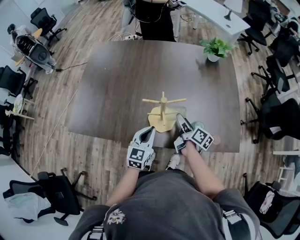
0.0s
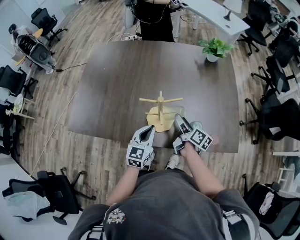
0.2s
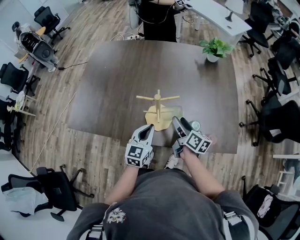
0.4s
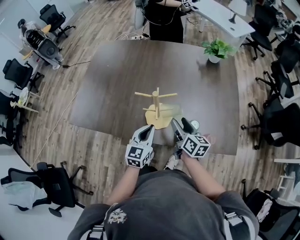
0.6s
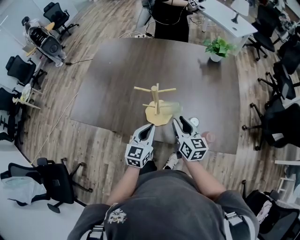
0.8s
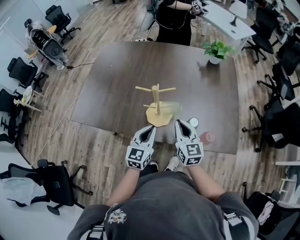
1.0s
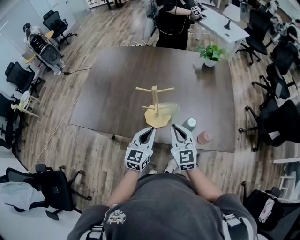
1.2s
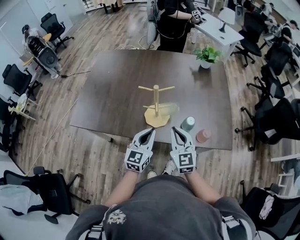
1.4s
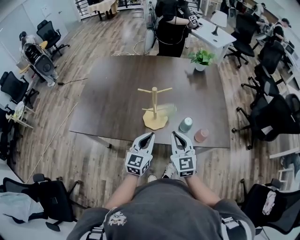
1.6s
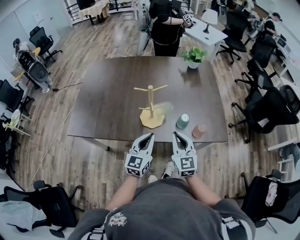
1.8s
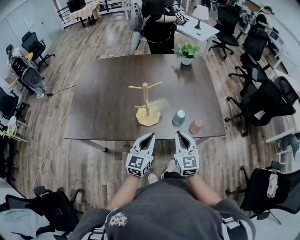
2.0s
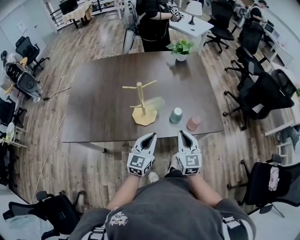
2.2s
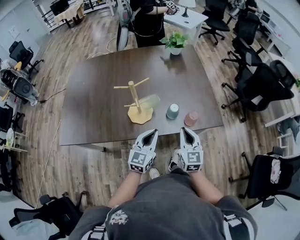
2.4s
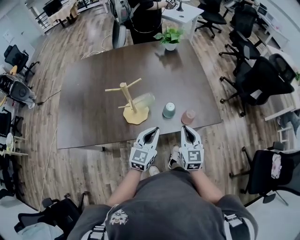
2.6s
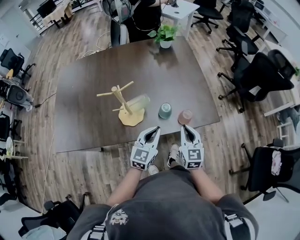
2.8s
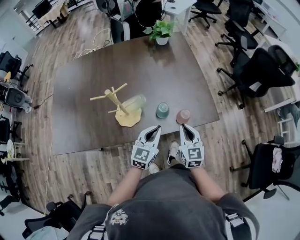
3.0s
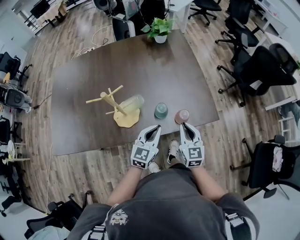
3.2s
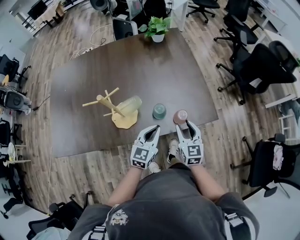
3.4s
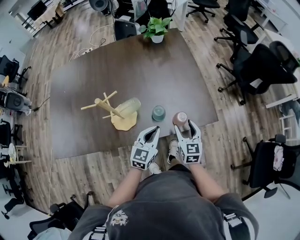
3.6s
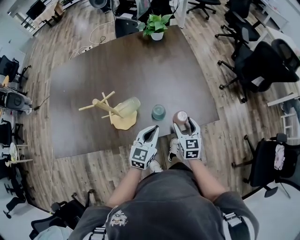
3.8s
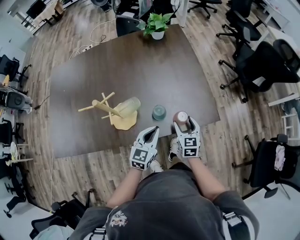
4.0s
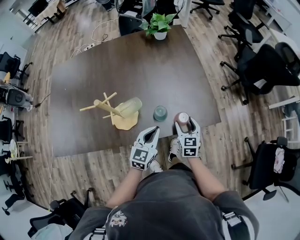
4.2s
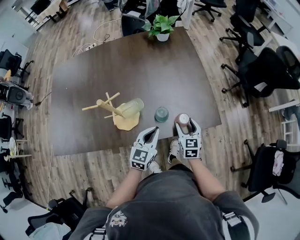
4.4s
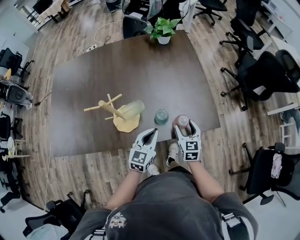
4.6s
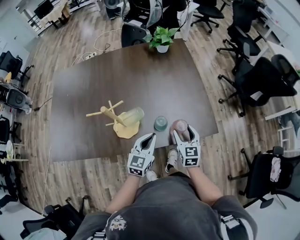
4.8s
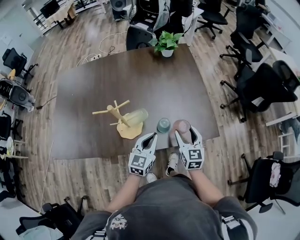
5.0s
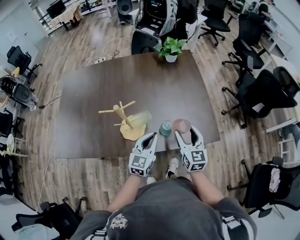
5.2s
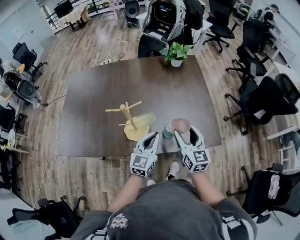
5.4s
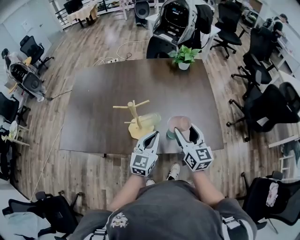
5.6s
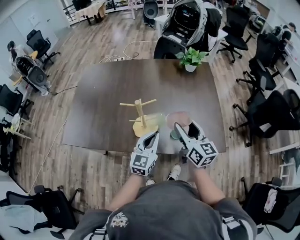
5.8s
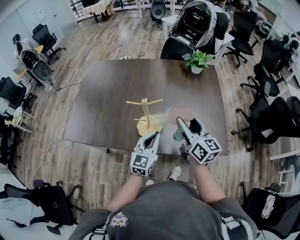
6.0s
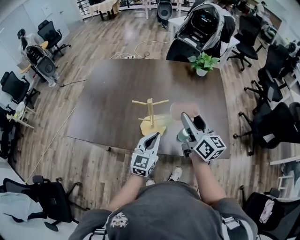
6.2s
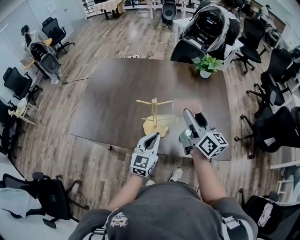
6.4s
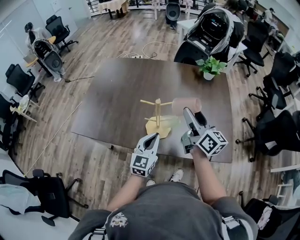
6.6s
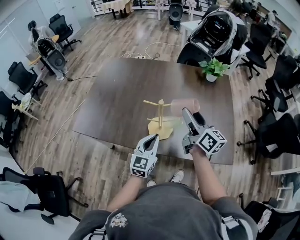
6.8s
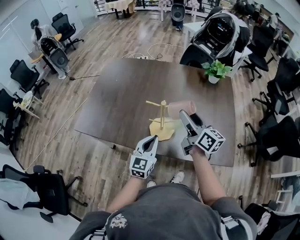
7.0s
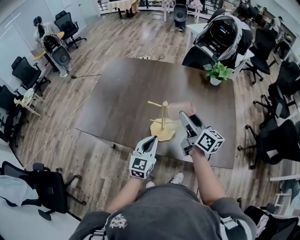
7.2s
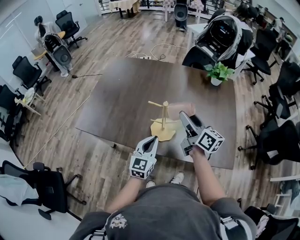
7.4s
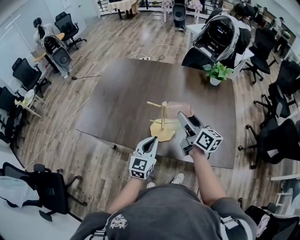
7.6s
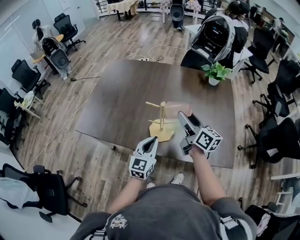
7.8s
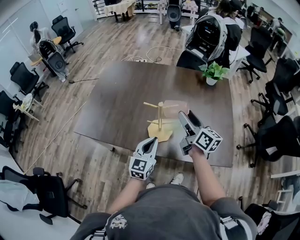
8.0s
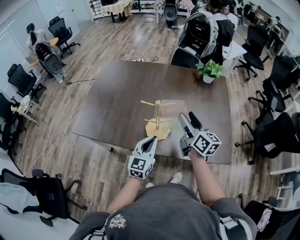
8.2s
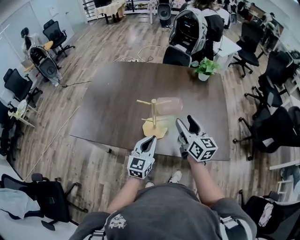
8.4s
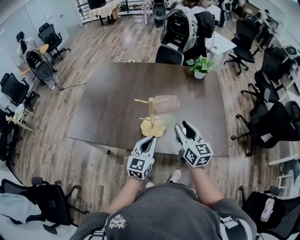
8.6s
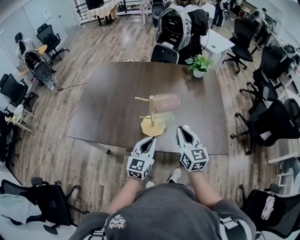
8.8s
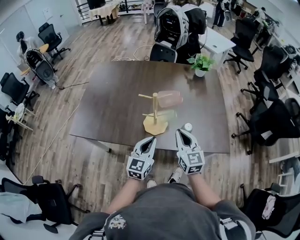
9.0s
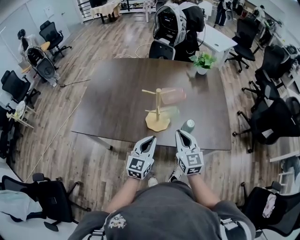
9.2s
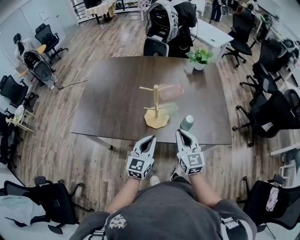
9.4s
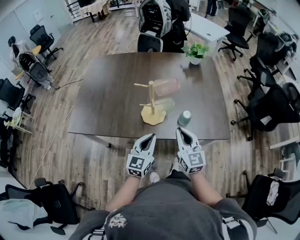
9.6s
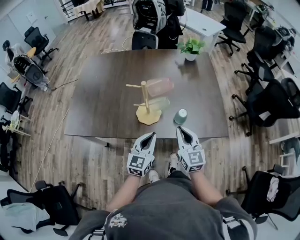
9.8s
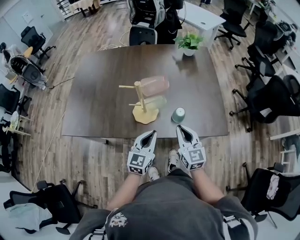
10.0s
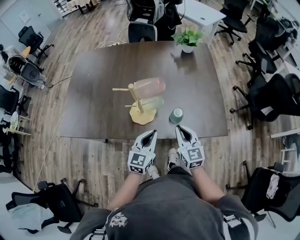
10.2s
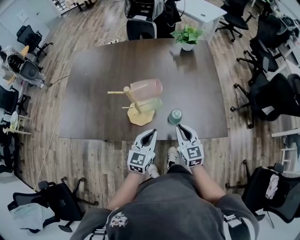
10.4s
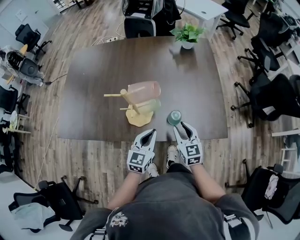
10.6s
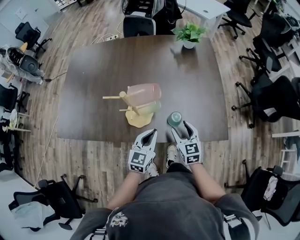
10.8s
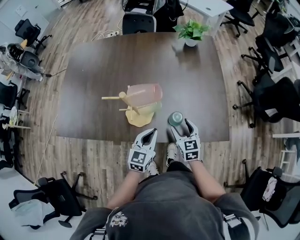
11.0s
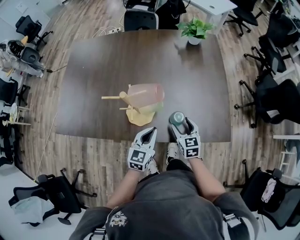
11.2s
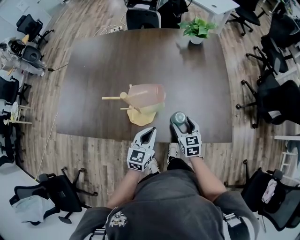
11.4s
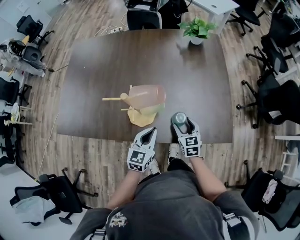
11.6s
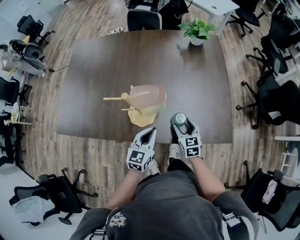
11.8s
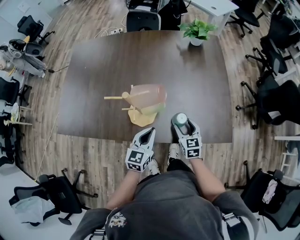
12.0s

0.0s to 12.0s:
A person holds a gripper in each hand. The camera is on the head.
0.0s to 1.6s: The left gripper goes approximately 10 cm backward and upward. Meanwhile the right gripper travels backward and upward by some 20 cm, twists some 70 degrees counterclockwise, seen from behind, and closes.
1.6s to 3.0s: The right gripper is displaced to the right and downward by roughly 20 cm, and rotates about 20 degrees, while the left gripper moves to the right, some 15 cm, and rotates some 20 degrees.
3.0s to 4.4s: The right gripper is displaced downward and forward by roughly 10 cm, and opens its fingers.
4.4s to 6.0s: The right gripper heads upward and to the left, covering some 30 cm, and tips its fingers upward by roughly 30 degrees. Meanwhile the left gripper shifts approximately 15 cm to the left and upward, and rotates some 20 degrees.
6.0s to 7.6s: The left gripper is displaced to the left by approximately 10 cm, while the right gripper heads to the left and forward, covering about 10 cm.
7.6s to 9.0s: The left gripper travels backward by some 5 cm. Meanwhile the right gripper moves backward and downward, roughly 15 cm, swivels some 40 degrees, and closes up.
9.0s to 10.4s: The left gripper heads to the right and downward, covering some 10 cm. Meanwhile the right gripper is displaced downward and to the right by roughly 15 cm.
10.4s to 12.0s: The right gripper is displaced downward and forward by roughly 10 cm, and opens its fingers. The left gripper changes place by roughly 5 cm.

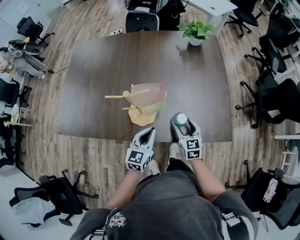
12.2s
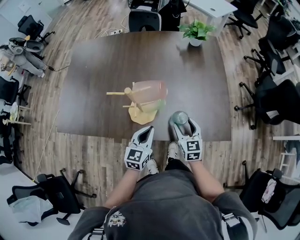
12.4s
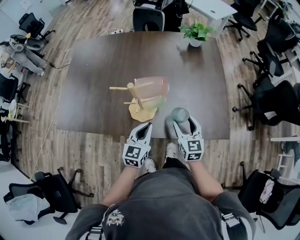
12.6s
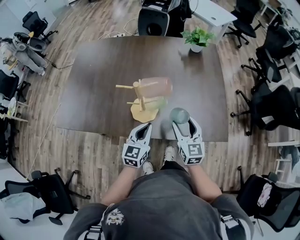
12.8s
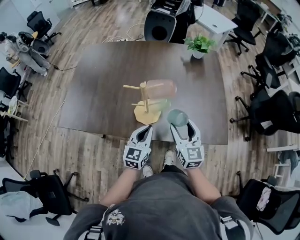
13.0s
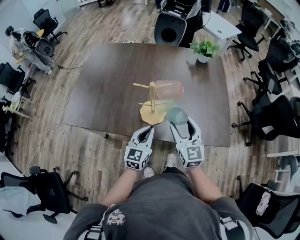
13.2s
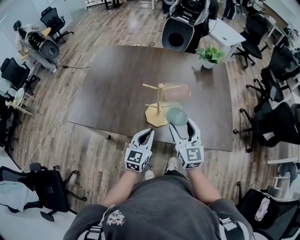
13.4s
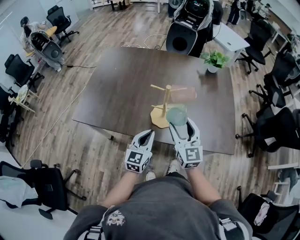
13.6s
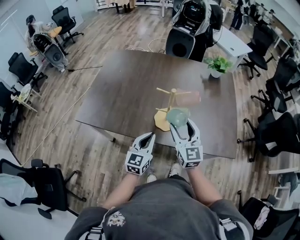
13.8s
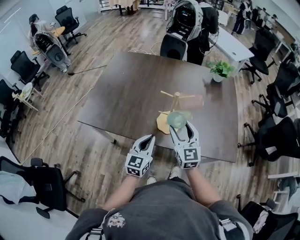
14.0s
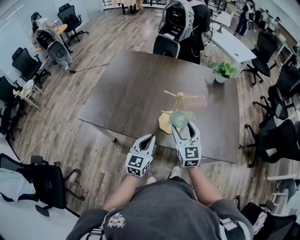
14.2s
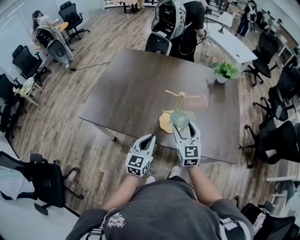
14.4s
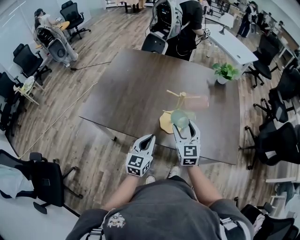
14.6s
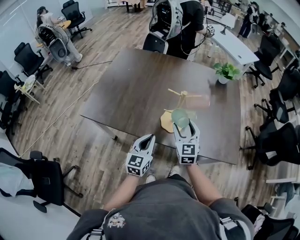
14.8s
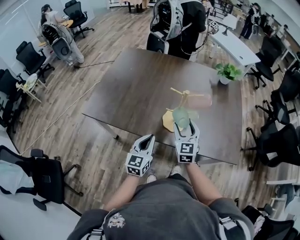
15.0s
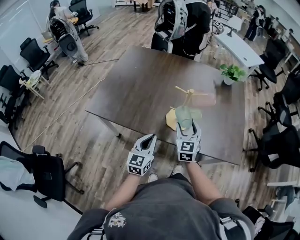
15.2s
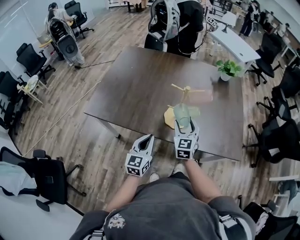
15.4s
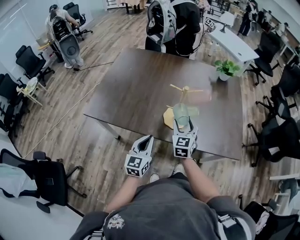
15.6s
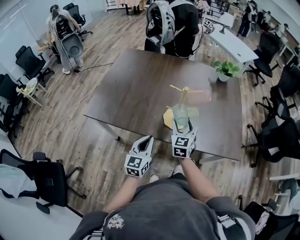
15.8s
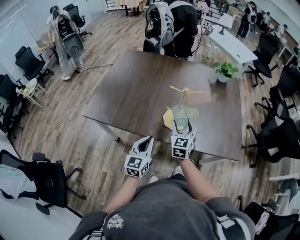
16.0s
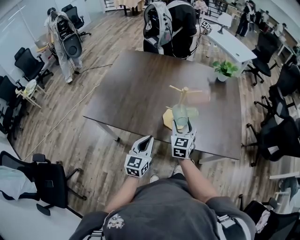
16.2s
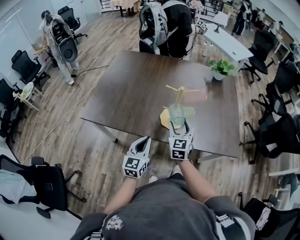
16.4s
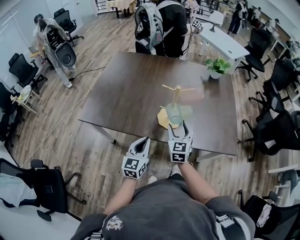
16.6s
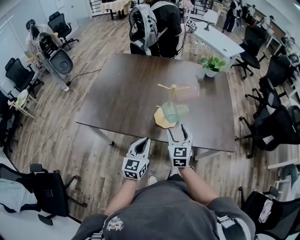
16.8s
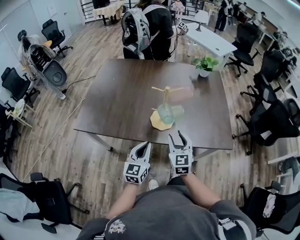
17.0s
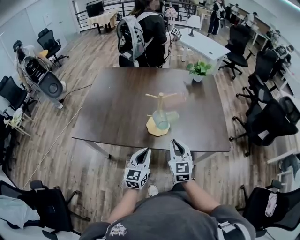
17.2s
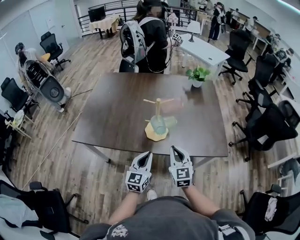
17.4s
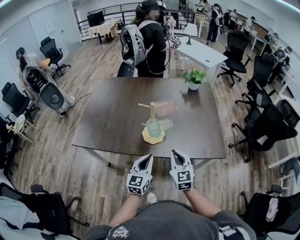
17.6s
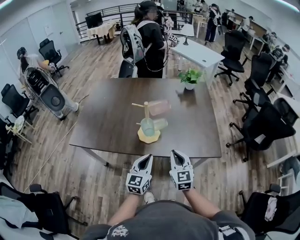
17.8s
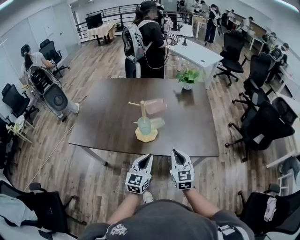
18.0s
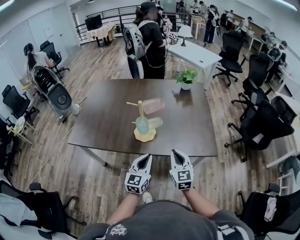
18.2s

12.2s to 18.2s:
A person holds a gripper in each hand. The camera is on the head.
12.2s to 13.8s: The left gripper is displaced to the left, upward and backward by approximately 15 cm. Meanwhile the right gripper shifts some 25 cm upward and to the left, and turns by some 30 degrees.
13.8s to 15.2s: The left gripper heads to the left, covering some 5 cm, while the right gripper travels downward by about 5 cm.
15.2s to 16.6s: The grippers move only a little.
16.6s to 18.2s: The right gripper travels to the right and backward by approximately 20 cm, and closes up. Meanwhile the left gripper goes approximately 15 cm to the right.

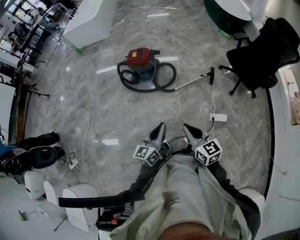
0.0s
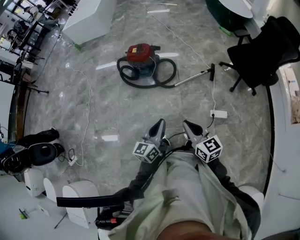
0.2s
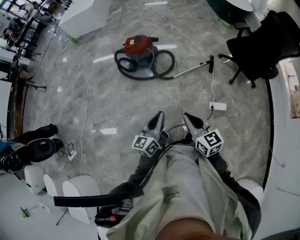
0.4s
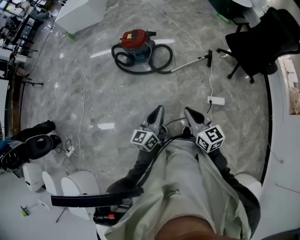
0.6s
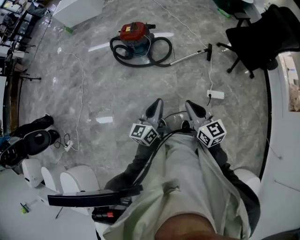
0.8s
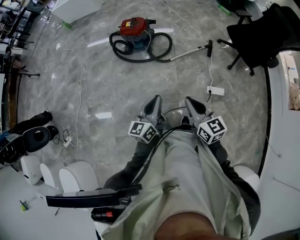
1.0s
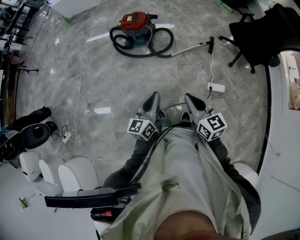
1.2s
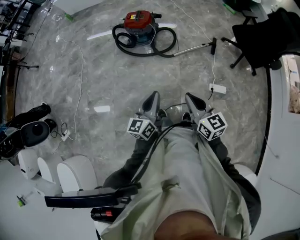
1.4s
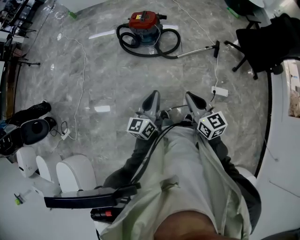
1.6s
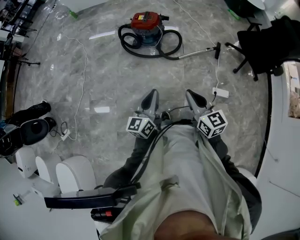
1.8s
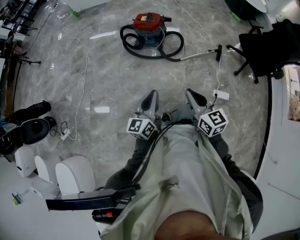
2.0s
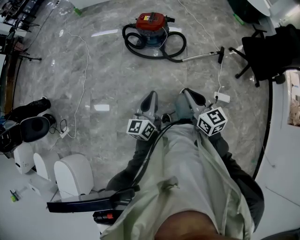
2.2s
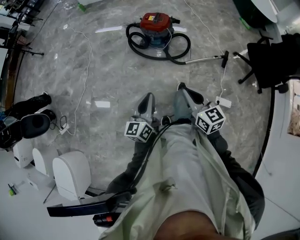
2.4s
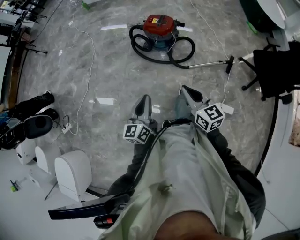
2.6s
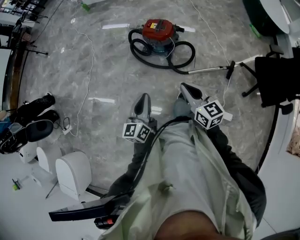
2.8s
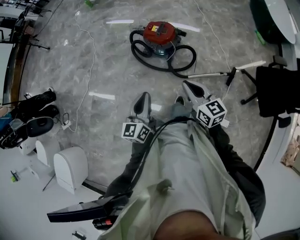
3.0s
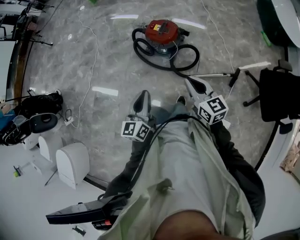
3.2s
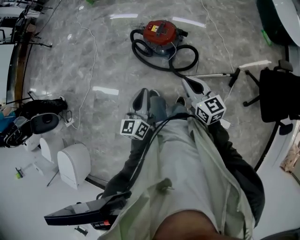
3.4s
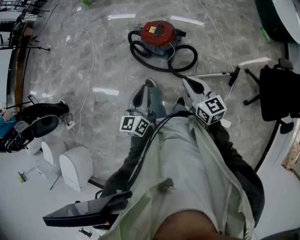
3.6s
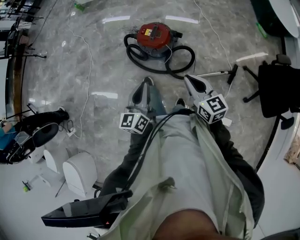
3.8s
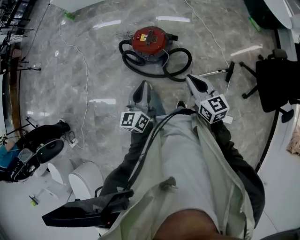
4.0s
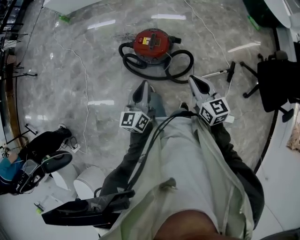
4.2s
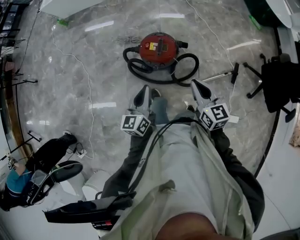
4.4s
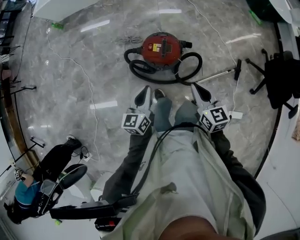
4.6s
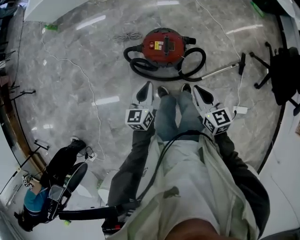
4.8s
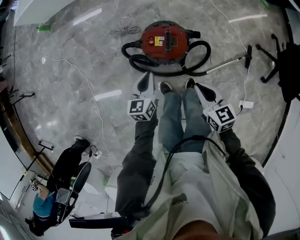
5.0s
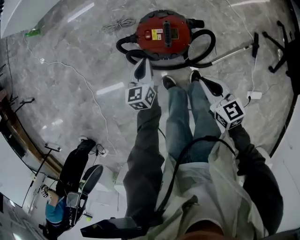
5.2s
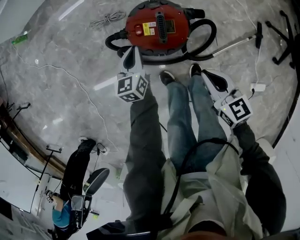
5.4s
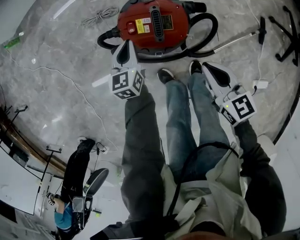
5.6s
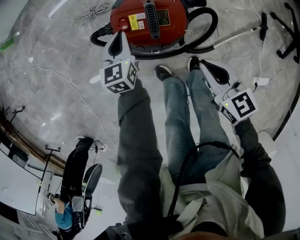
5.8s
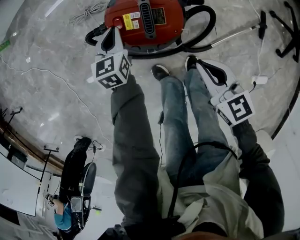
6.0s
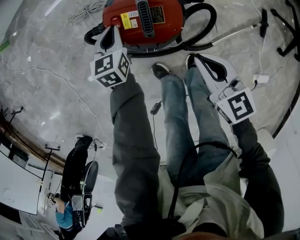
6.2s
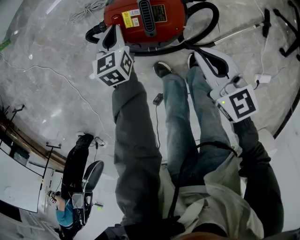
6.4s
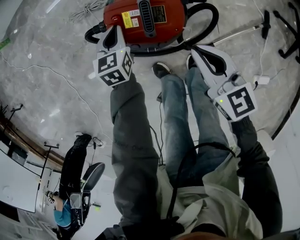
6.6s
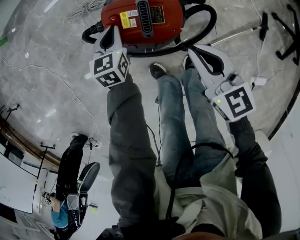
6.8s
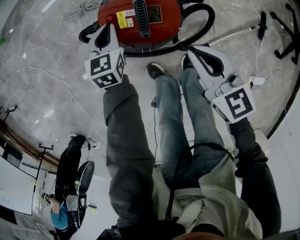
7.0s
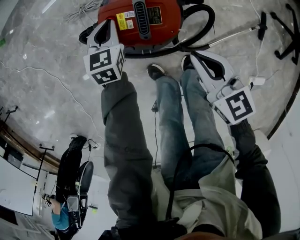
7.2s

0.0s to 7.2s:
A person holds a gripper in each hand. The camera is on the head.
0.0s to 1.4s: The left gripper goes approximately 5 cm to the left.
1.4s to 2.8s: Both grippers travel together forward, some 25 cm.
2.8s to 4.4s: Both grippers travel together forward, some 35 cm.
4.4s to 5.8s: The right gripper goes some 35 cm downward; the left gripper moves downward and forward, approximately 50 cm, and rotates about 30 degrees.
5.8s to 7.2s: There are only small adjustments of the grippers.
